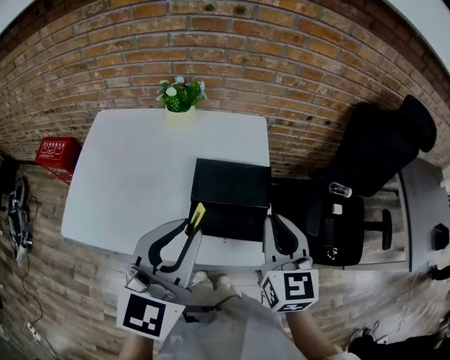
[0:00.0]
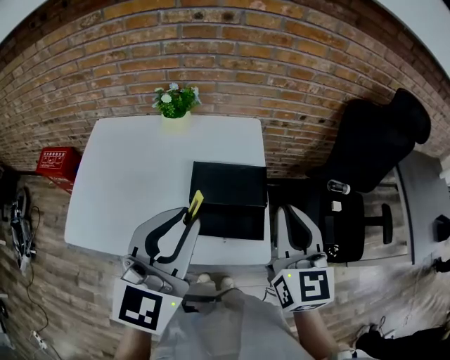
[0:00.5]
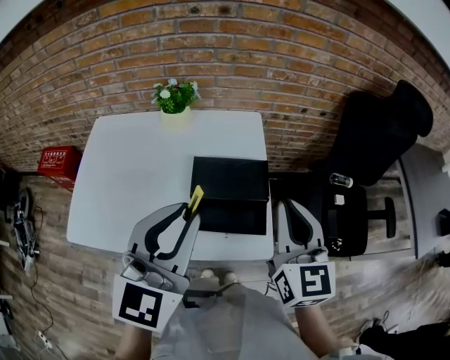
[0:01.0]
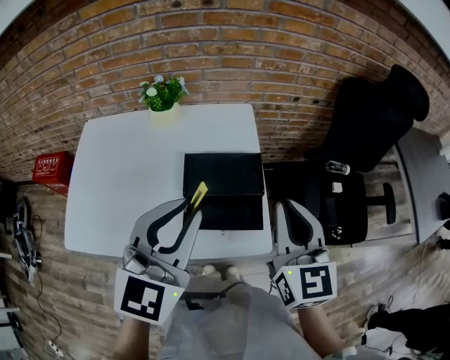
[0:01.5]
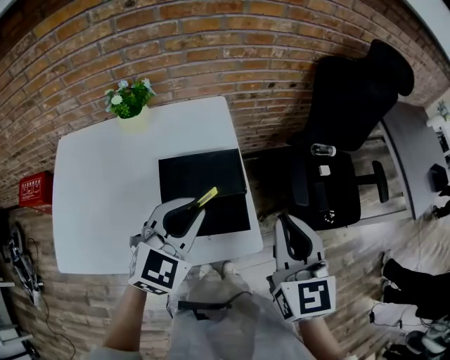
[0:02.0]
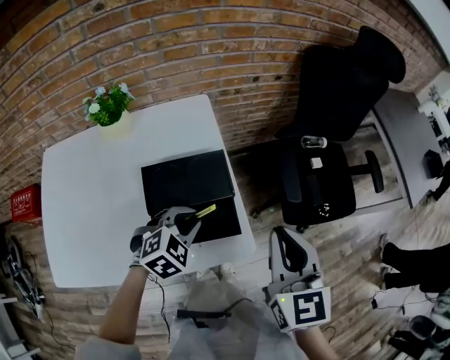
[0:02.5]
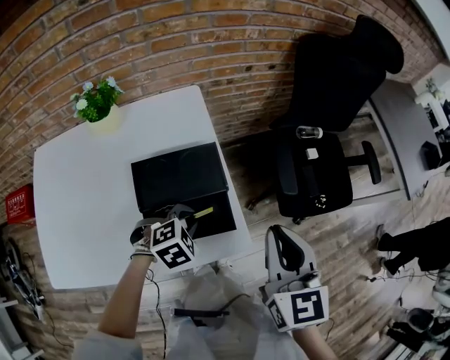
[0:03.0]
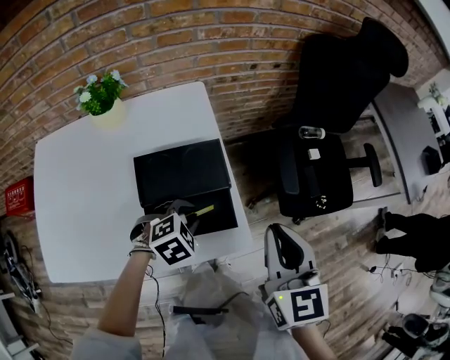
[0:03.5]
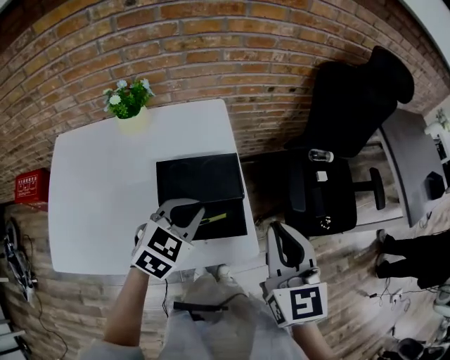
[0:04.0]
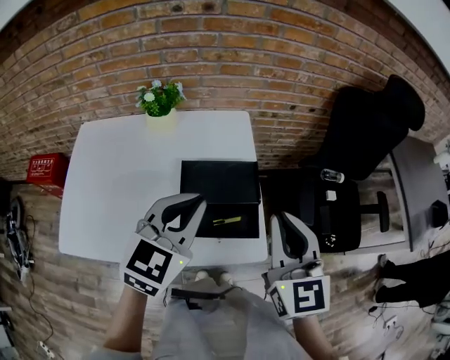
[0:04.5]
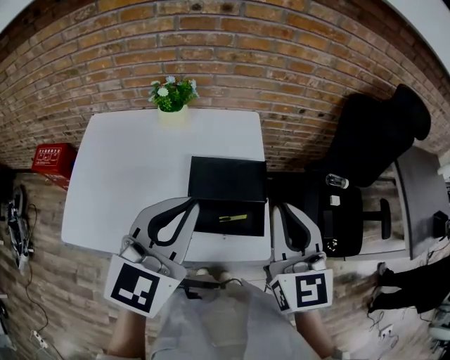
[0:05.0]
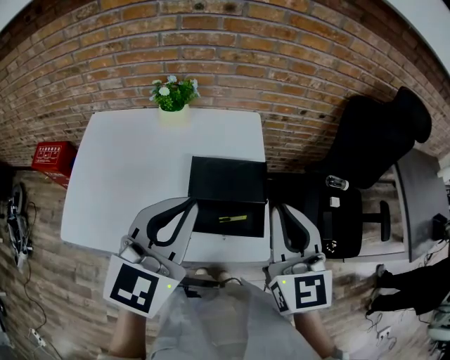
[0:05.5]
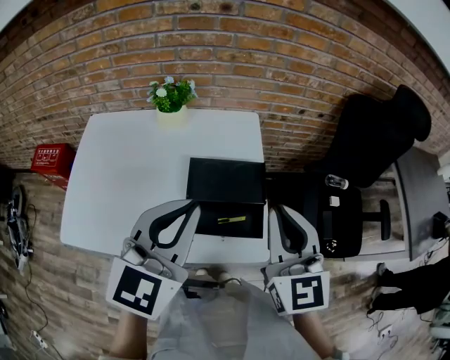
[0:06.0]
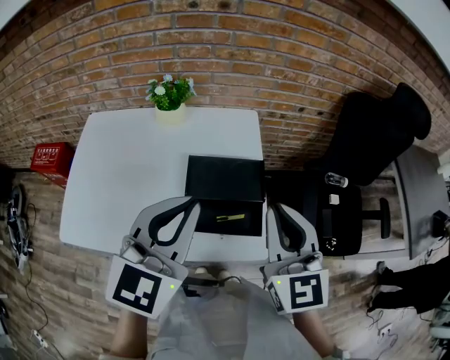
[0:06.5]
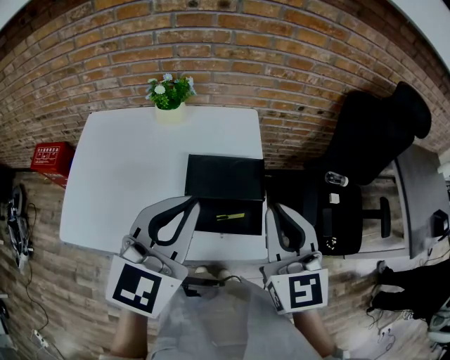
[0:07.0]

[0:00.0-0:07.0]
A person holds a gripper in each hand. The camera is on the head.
0:00.0 to 0:02.0: The left gripper moves downward, forward and to the right, some 15 cm, and turns by roughly 30 degrees, while the right gripper moves to the right, about 10 cm.
0:02.0 to 0:03.5: The left gripper shifts approximately 20 cm downward, and tips its fingers downward by approximately 40 degrees; the right gripper moves approximately 5 cm.
0:03.5 to 0:05.0: The left gripper moves upward, approximately 30 cm, and angles its fingers upward, by about 60 degrees. The right gripper goes about 10 cm upward, and swivels roughly 20 degrees.
0:05.0 to 0:07.0: Neither gripper changes place.

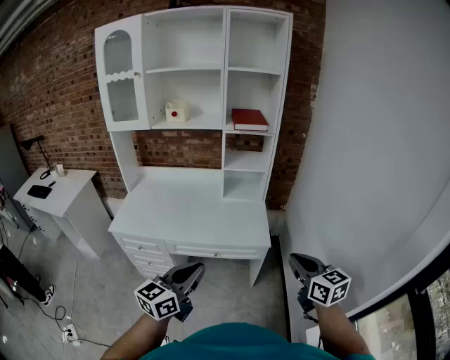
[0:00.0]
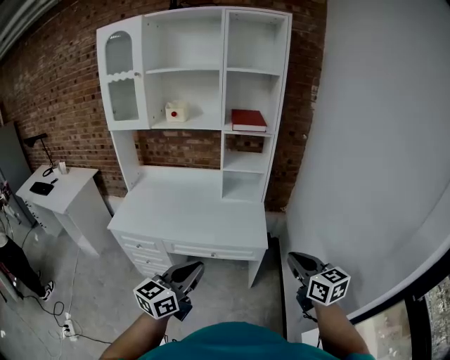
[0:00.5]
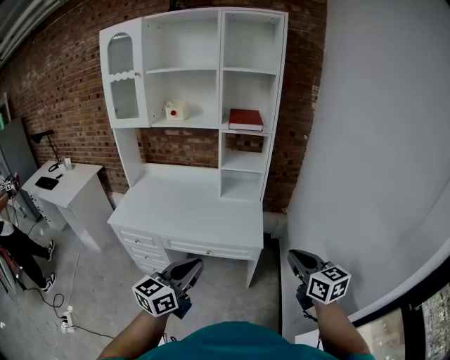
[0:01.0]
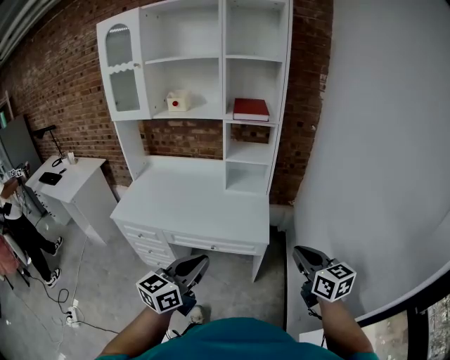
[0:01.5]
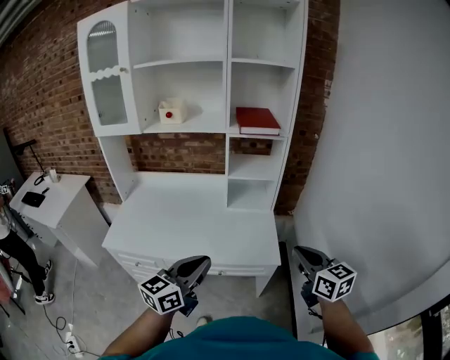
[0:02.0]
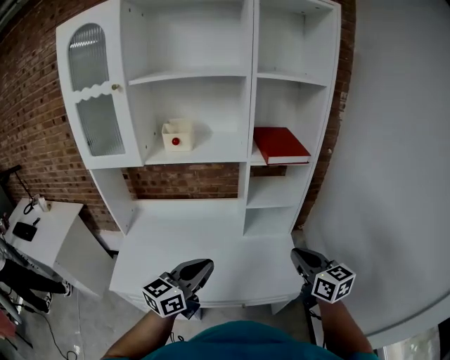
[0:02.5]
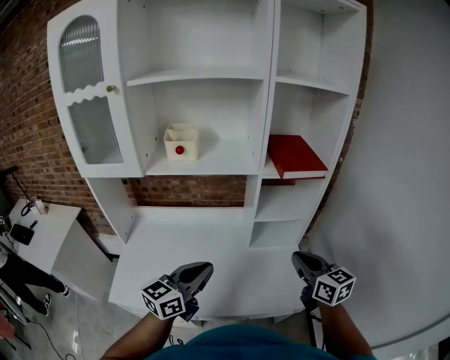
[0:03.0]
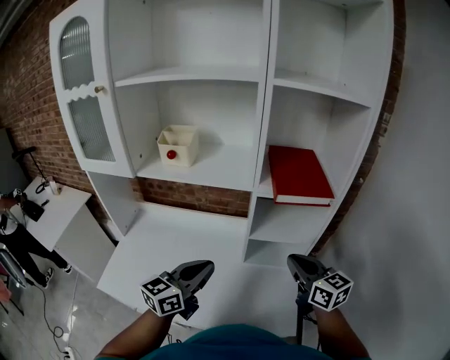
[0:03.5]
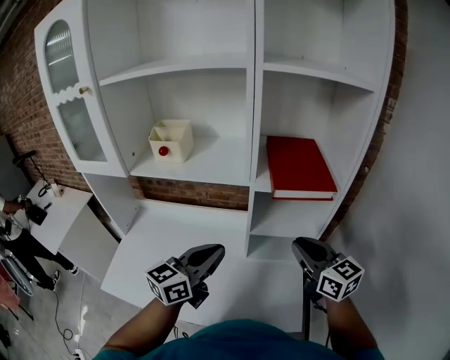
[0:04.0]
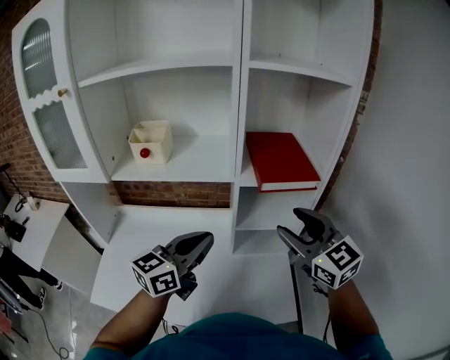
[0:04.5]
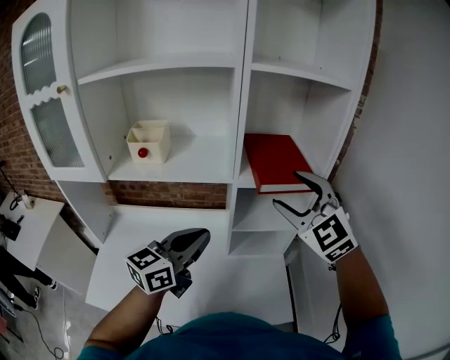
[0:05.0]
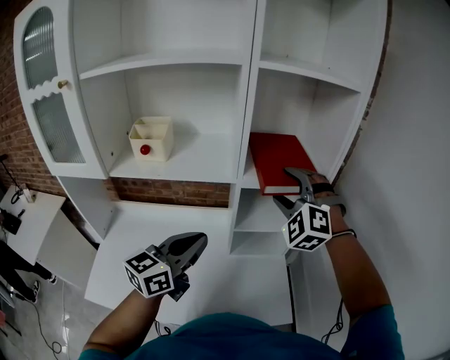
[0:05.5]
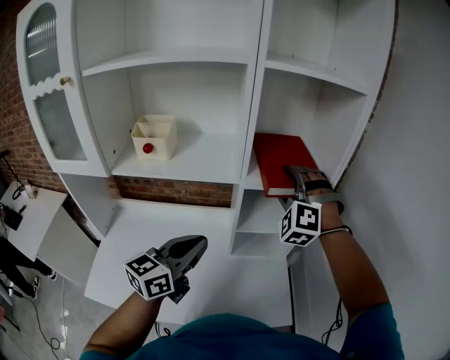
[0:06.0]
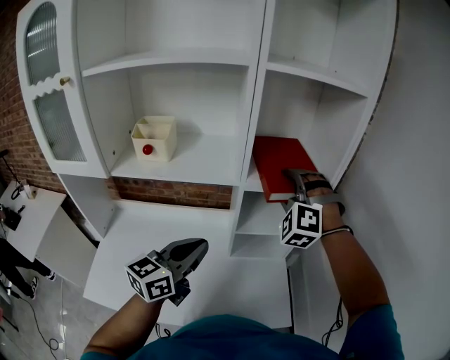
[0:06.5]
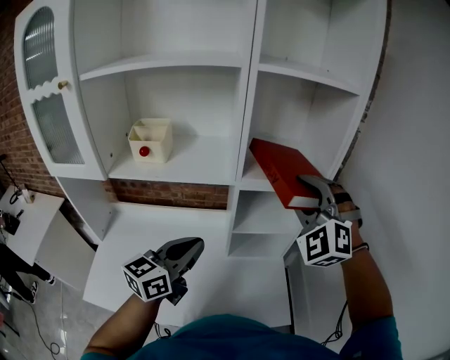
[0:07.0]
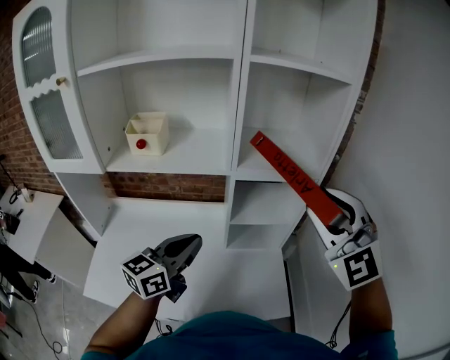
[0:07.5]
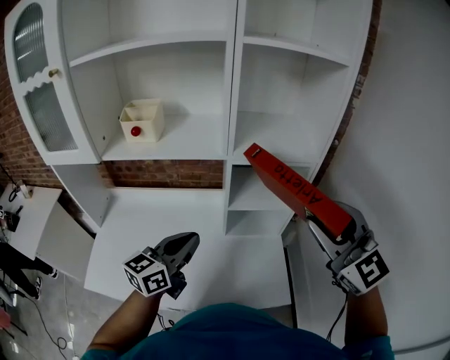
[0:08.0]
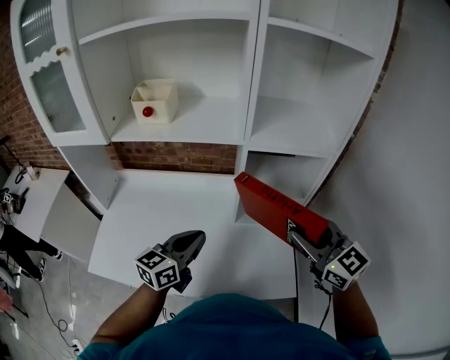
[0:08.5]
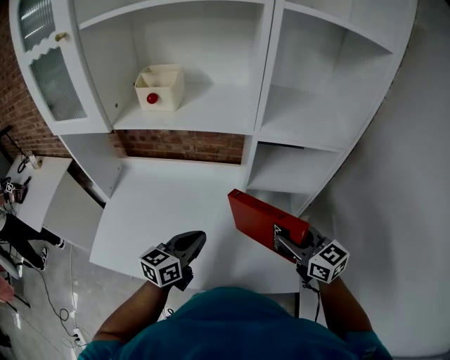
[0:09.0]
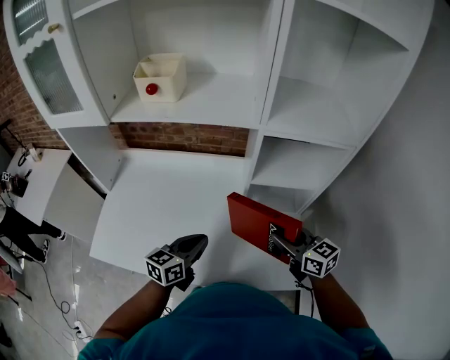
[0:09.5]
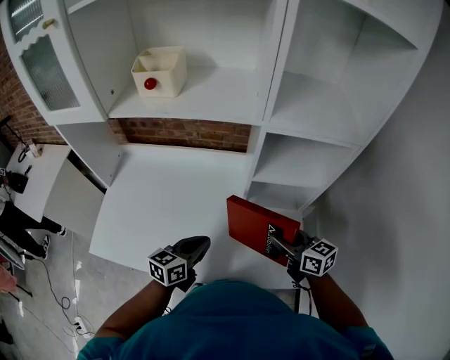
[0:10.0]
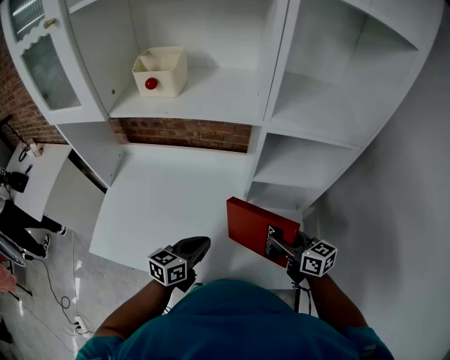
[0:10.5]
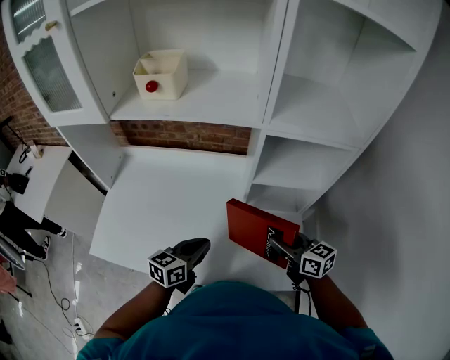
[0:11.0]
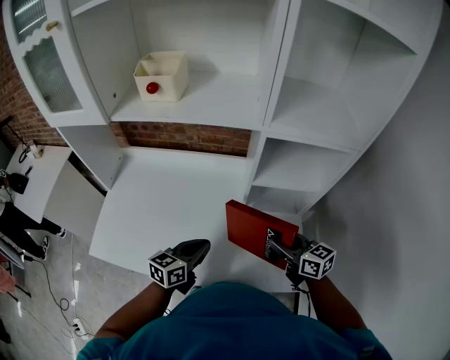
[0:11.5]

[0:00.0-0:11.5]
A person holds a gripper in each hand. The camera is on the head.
0:00.0 to 0:02.0: Both grippers move forward, approximately 15 cm.
0:02.0 to 0:04.0: Both grippers travel together forward, roughly 35 cm.
0:04.0 to 0:06.0: The right gripper heads forward, upward and to the left, covering about 15 cm, rotates around the line of its fingers by approximately 80 degrees, counterclockwise from behind, and opens.
0:06.0 to 0:07.5: The right gripper shifts approximately 20 cm backward, upward and to the right, changes its angle by approximately 40 degrees, and closes its fingers.
0:07.5 to 0:09.5: The left gripper is displaced downward by about 20 cm; the right gripper shifts approximately 35 cm downward, and twists some 60 degrees clockwise, seen from behind.
0:09.5 to 0:11.5: The grippers move only a little.

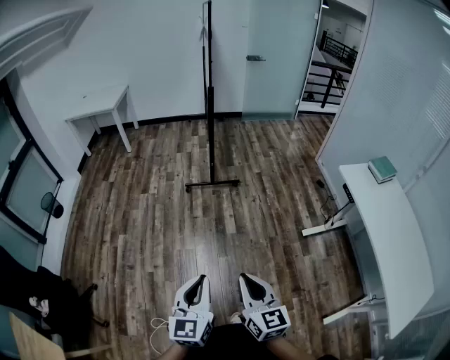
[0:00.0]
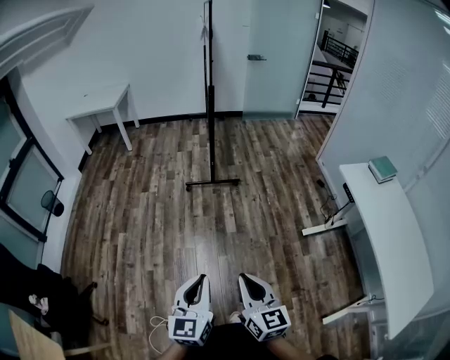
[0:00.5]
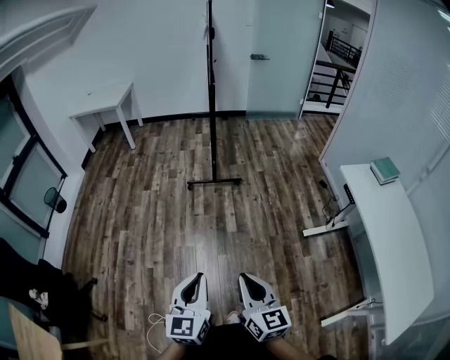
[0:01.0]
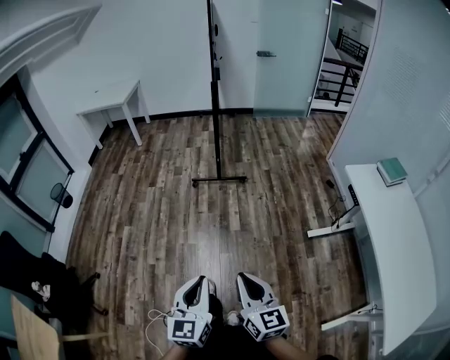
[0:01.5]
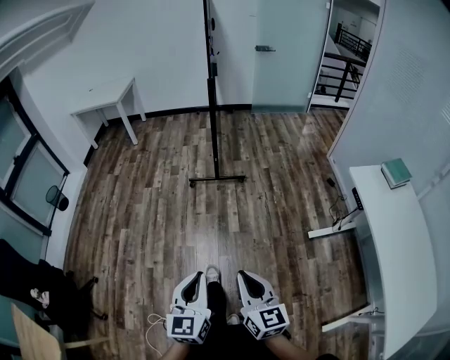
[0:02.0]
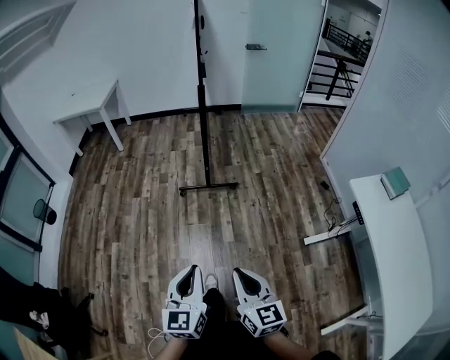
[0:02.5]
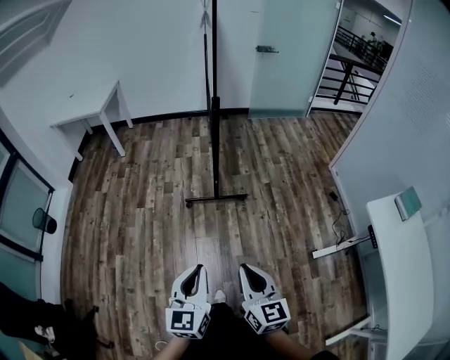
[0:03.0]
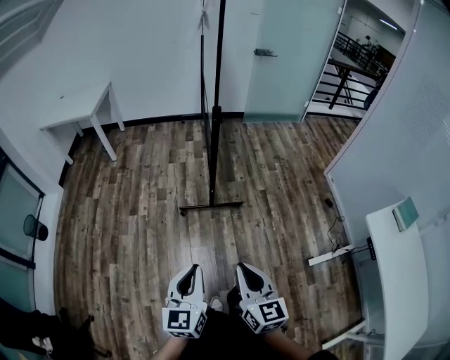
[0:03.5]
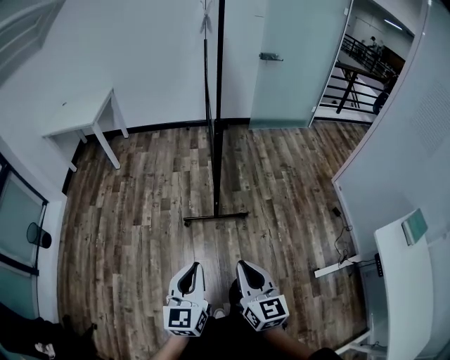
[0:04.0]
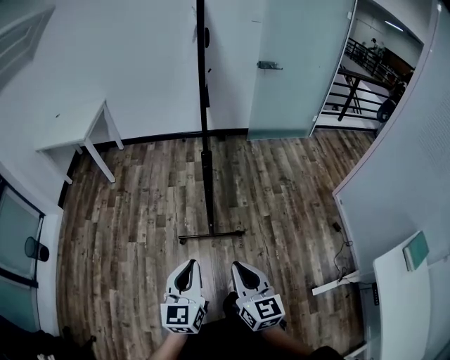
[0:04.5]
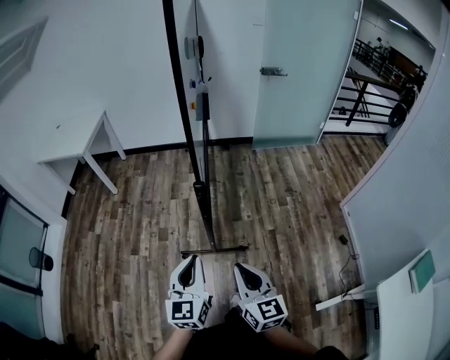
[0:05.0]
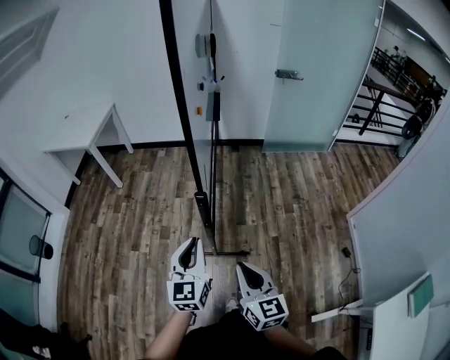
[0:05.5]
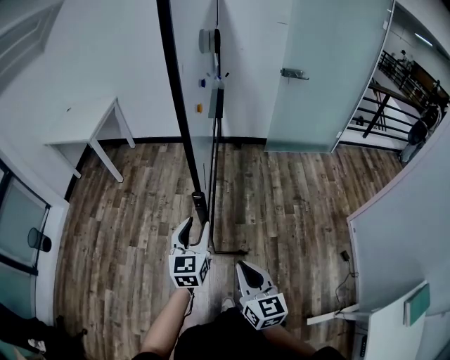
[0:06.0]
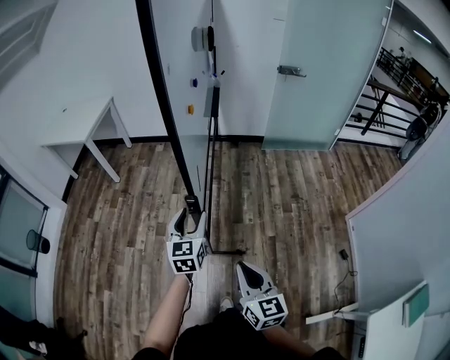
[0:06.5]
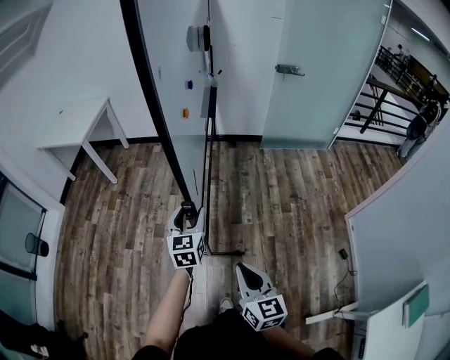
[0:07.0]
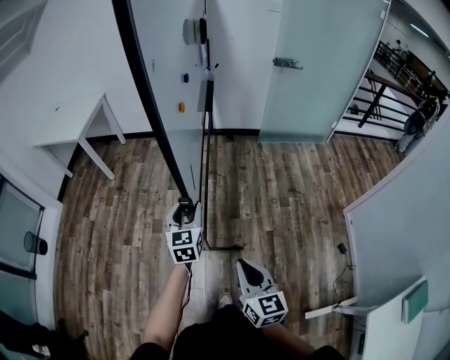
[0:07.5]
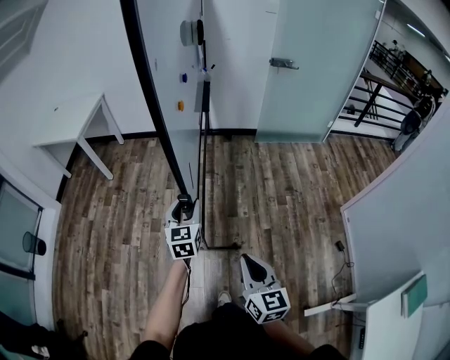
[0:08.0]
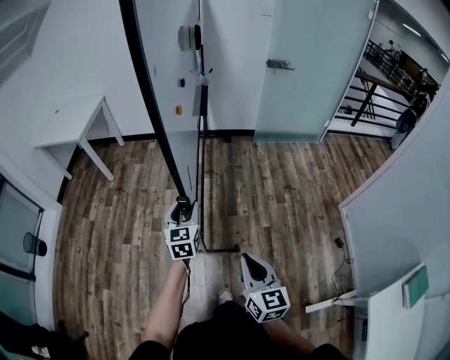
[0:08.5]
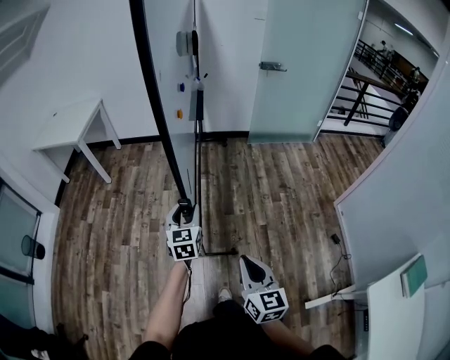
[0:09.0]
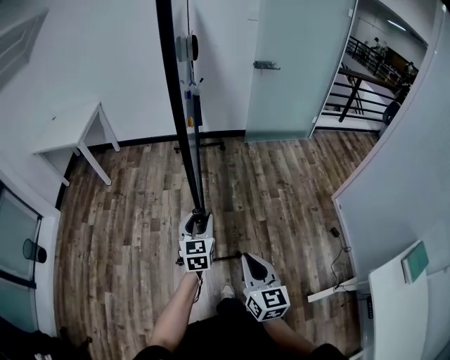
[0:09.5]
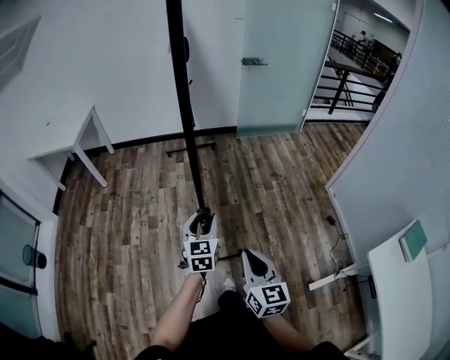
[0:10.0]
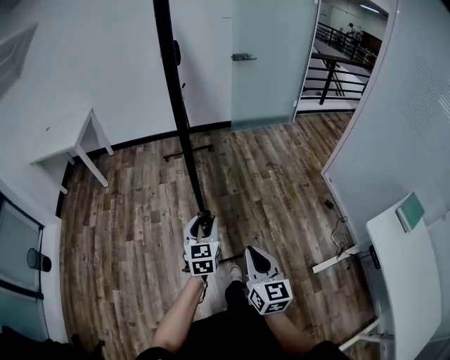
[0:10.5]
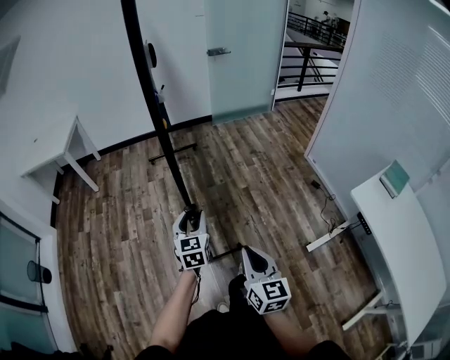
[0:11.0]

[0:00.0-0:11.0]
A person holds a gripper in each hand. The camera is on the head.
0:00.0 to 0:02.0: Both grippers travel together to the right and forward, approximately 10 cm.
0:02.0 to 0:03.5: The pair of grippers is taken forward, about 40 cm.
0:03.5 to 0:05.5: The pair of grippers is taken forward, about 50 cm.
0:05.5 to 0:07.5: The right gripper shifts by roughly 5 cm. The left gripper moves forward and downward, some 20 cm, and opens its fingers.
0:07.5 to 0:09.0: The two grippers go roughly 10 cm backward.
0:09.0 to 0:11.0: The two grippers go about 35 cm backward.
